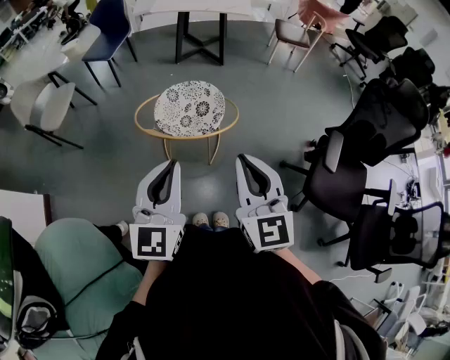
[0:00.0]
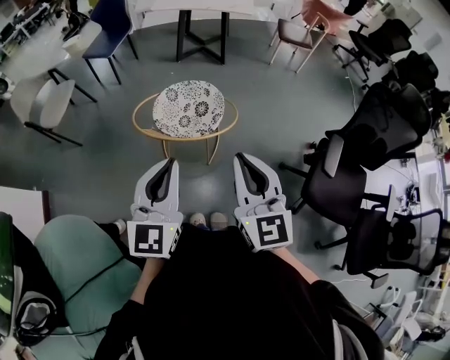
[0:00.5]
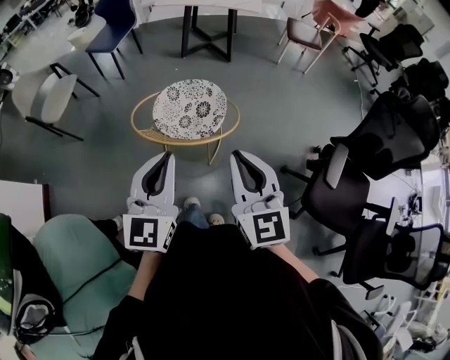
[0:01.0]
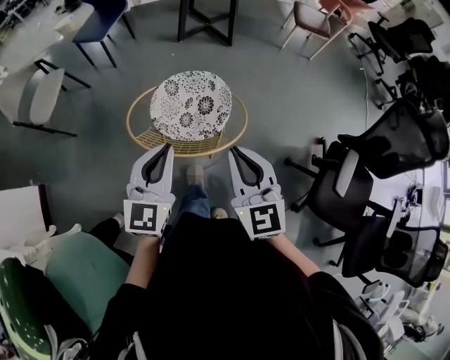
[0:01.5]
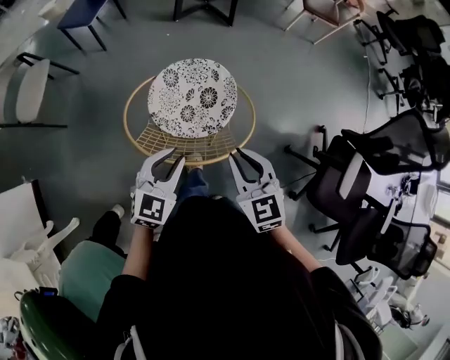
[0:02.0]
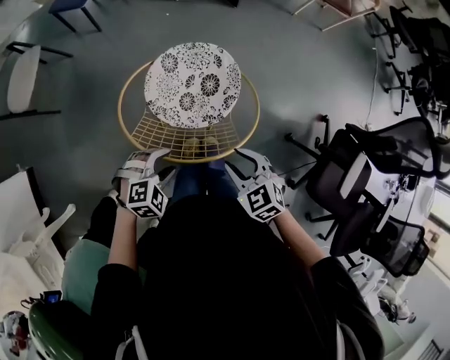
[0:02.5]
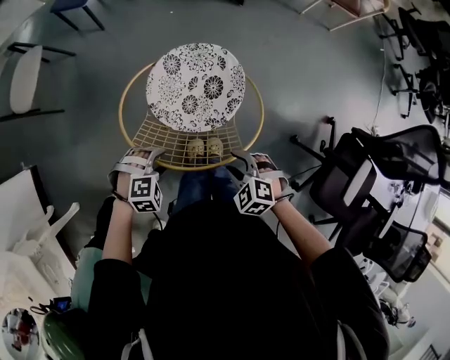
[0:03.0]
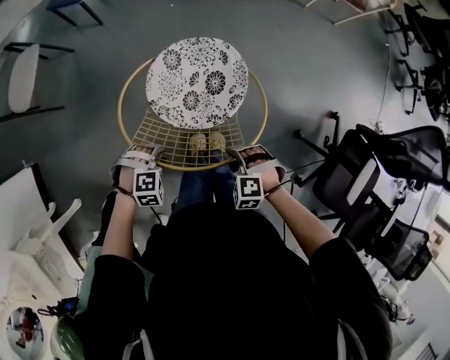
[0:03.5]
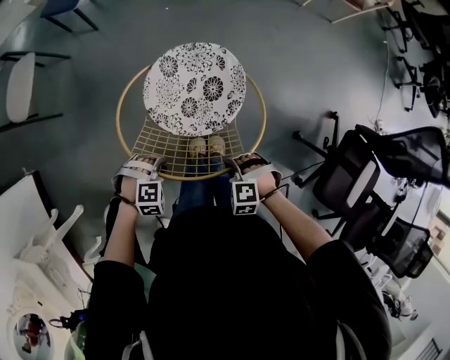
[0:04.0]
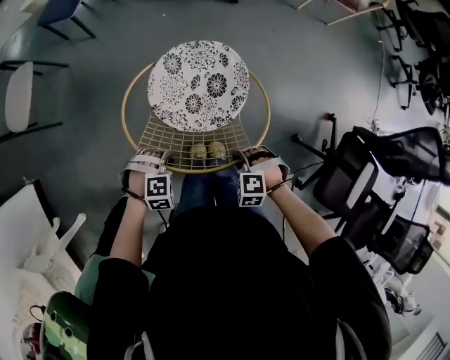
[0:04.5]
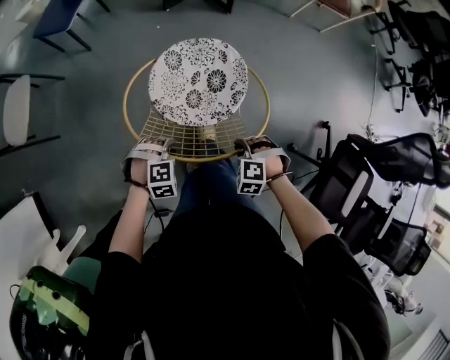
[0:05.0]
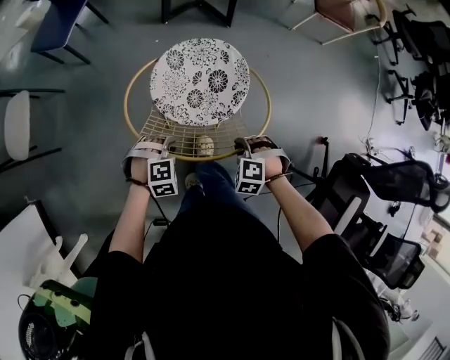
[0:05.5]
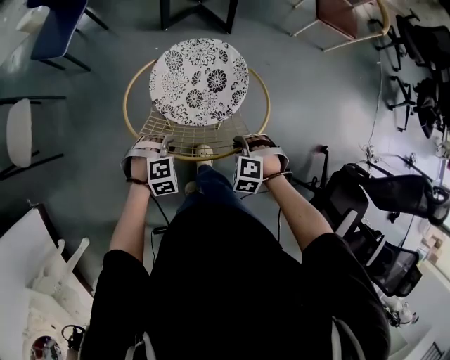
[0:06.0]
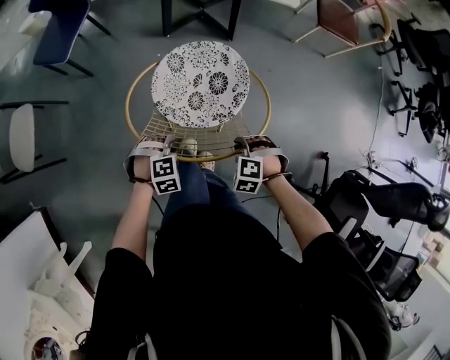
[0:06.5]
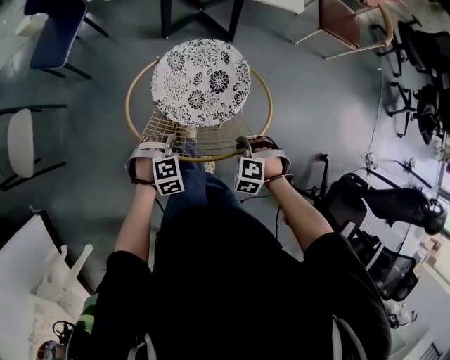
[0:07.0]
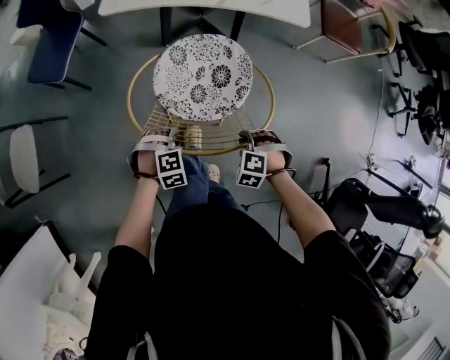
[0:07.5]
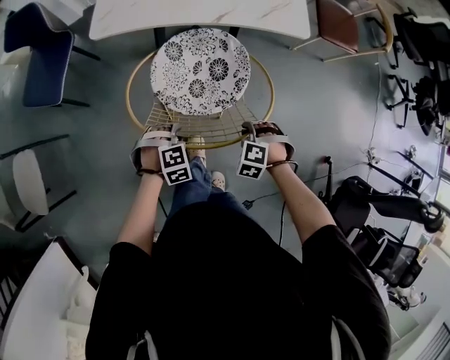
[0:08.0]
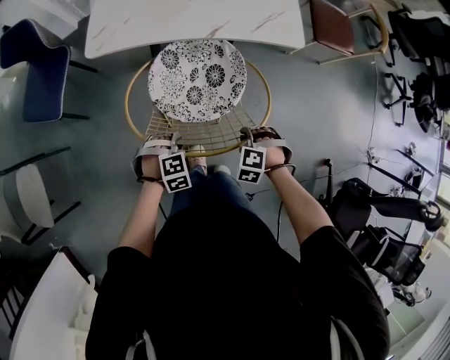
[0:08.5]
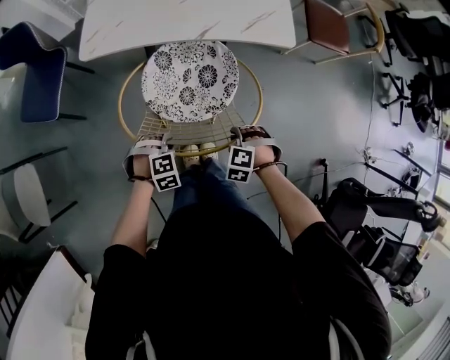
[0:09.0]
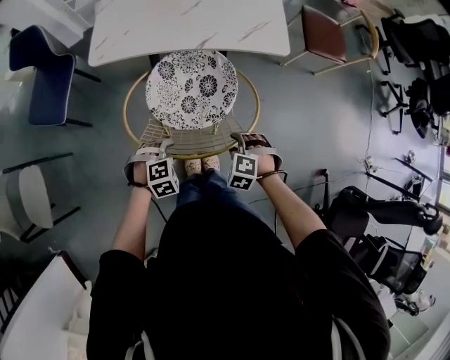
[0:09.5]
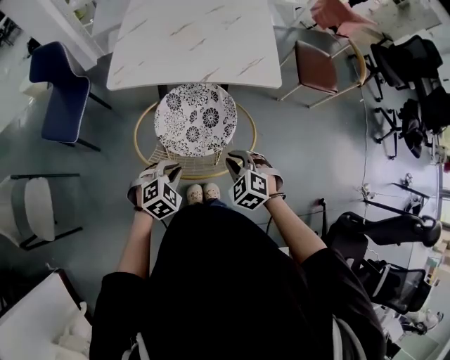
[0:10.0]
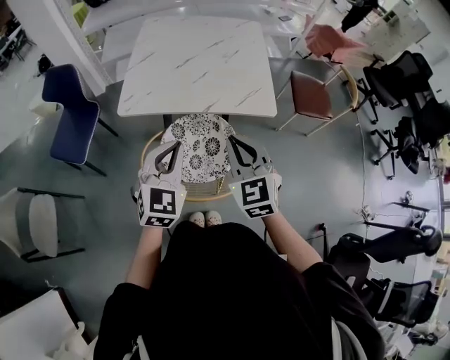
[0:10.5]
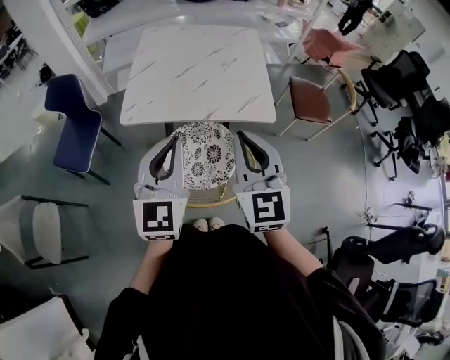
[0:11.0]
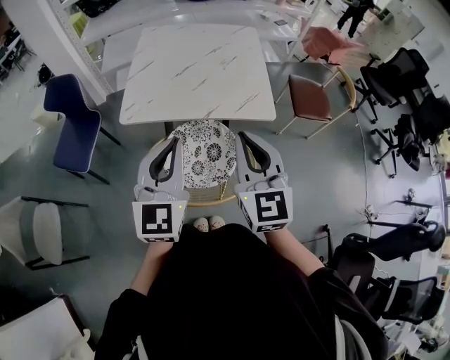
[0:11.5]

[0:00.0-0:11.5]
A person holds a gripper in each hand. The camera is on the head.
0:00.0 to 0:02.0: The grippers both shift forward and downward by about 30 cm. The right gripper rotates approximately 30 degrees; the left gripper turns by about 30 degrees.
0:02.0 to 0:04.0: The two grippers go some 20 cm downward. The right gripper angles its fingers downward, by approximately 50 degrees, and opens and closes again. The left gripper tips its fingers downward by about 50 degrees, and opens and closes again.
0:04.0 to 0:06.0: The left gripper changes place by roughly 35 cm, while the right gripper shifts by approximately 35 cm.
0:06.0 to 0:07.5: The right gripper ends up roughly 15 cm from where it was; the left gripper shifts by approximately 15 cm.
0:07.5 to 0:09.5: The right gripper moves about 10 cm, and opens, while the left gripper changes place by roughly 10 cm.
0:09.5 to 0:11.5: The grippers both shift upward by some 40 cm. The right gripper angles its fingers upward, by some 70 degrees, and closes up; the left gripper tilts its fingers approximately 70 degrees upward, and closes.

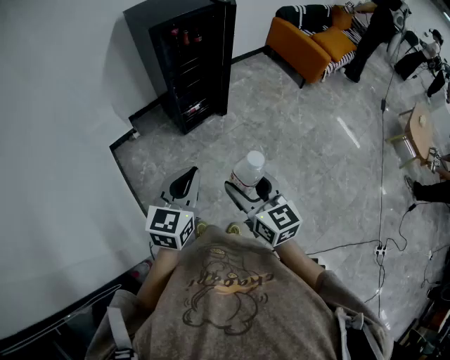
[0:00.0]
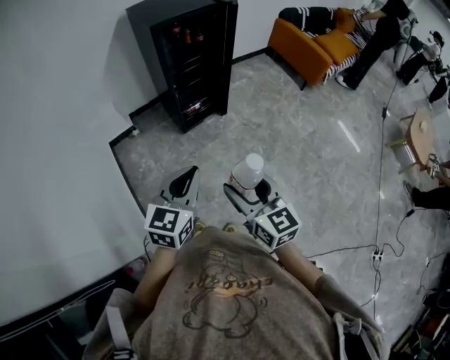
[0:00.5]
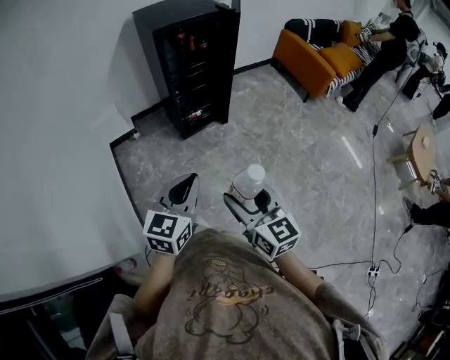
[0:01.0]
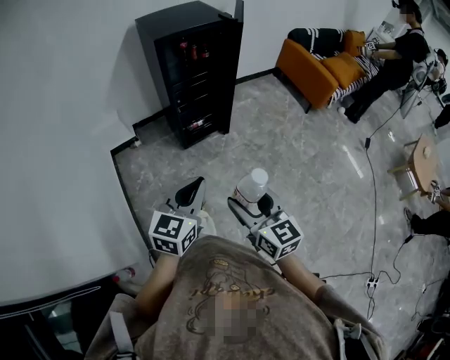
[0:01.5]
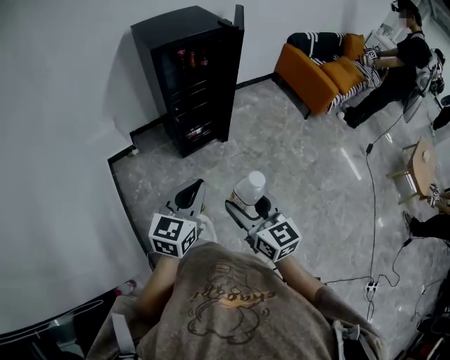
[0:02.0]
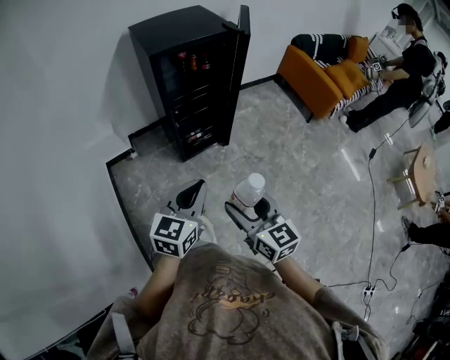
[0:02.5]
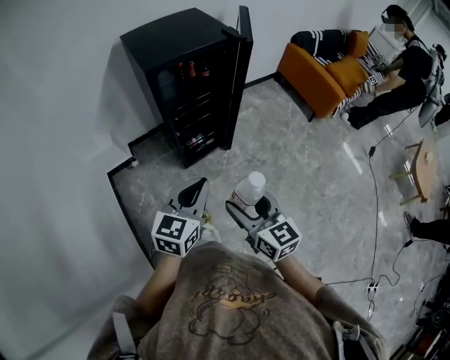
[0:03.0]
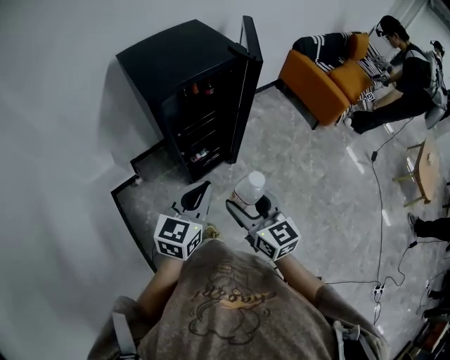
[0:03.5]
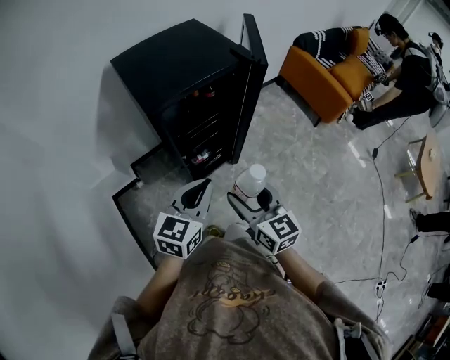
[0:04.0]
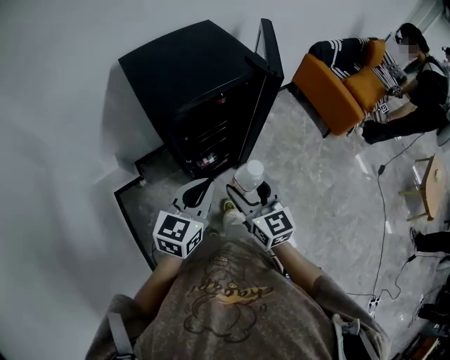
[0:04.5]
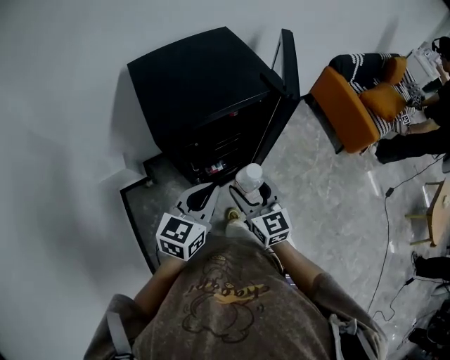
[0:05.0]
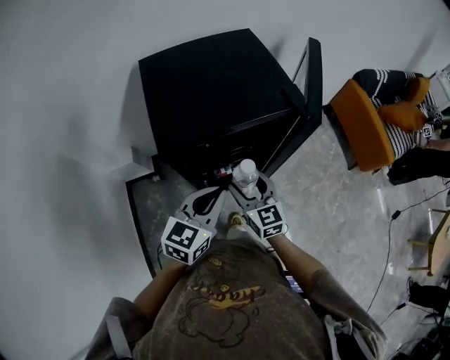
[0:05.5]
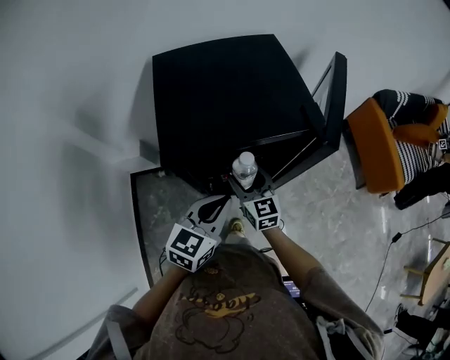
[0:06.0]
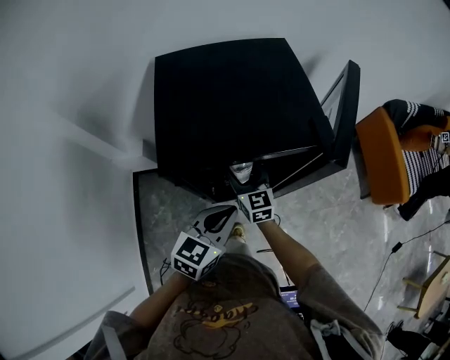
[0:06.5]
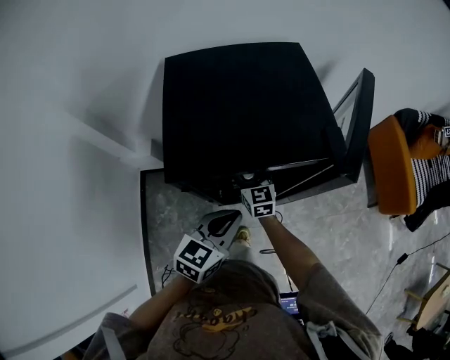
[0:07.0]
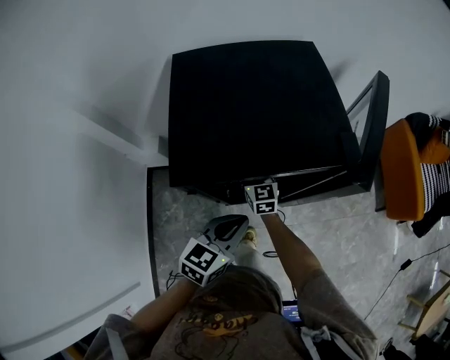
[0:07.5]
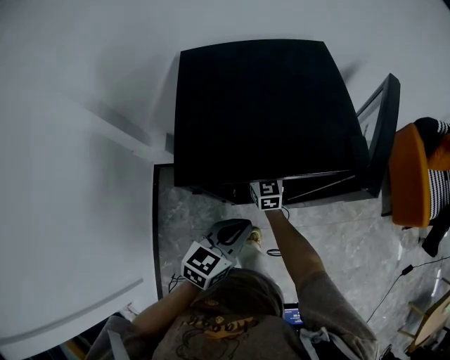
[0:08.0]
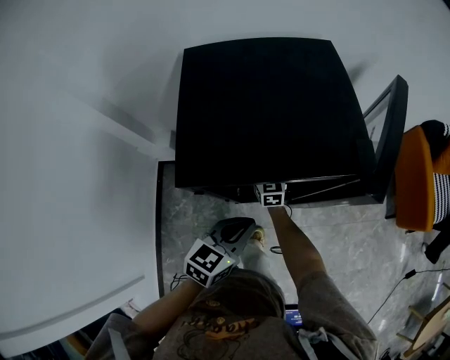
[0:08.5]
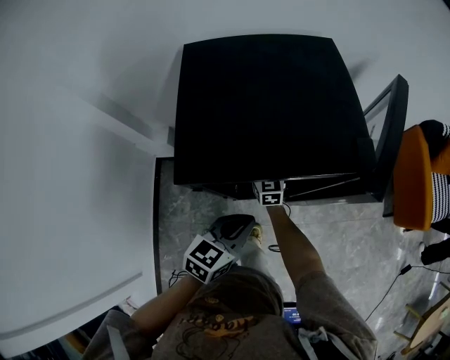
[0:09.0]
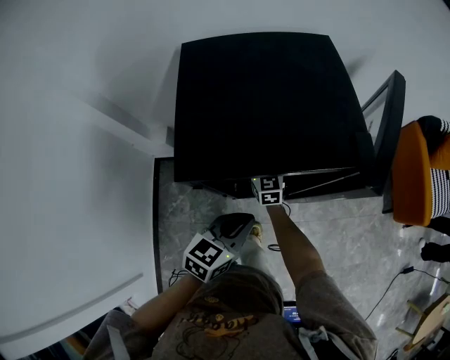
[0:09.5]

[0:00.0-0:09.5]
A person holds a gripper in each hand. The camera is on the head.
0:00.0 to 0:02.0: The right gripper goes some 5 cm forward. Meanwhile the left gripper heads forward and to the right, covering approximately 10 cm.
0:02.0 to 0:04.0: Both grippers move forward, some 30 cm.
0:04.0 to 0:05.5: The left gripper moves forward, approximately 15 cm. Meanwhile the right gripper goes roughly 25 cm forward and downward.
0:05.5 to 0:07.5: The right gripper travels forward, downward and to the left by roughly 20 cm, while the left gripper travels downward by some 5 cm.
0:07.5 to 0:09.5: The grippers make only small movements.

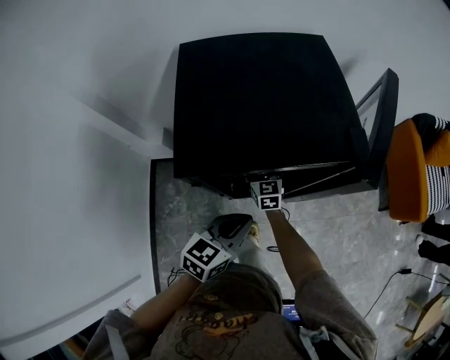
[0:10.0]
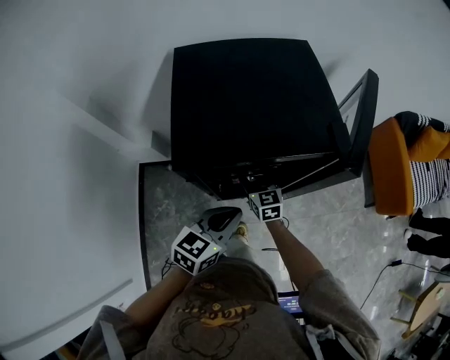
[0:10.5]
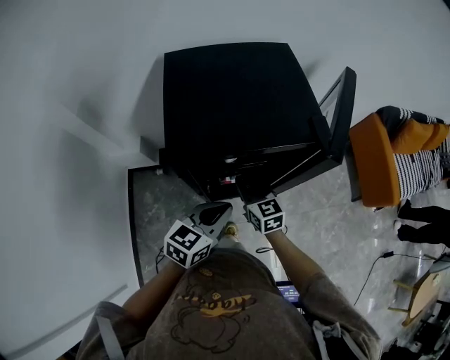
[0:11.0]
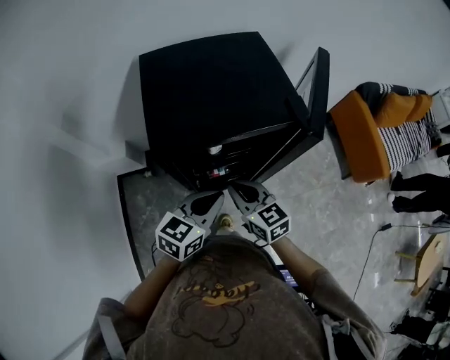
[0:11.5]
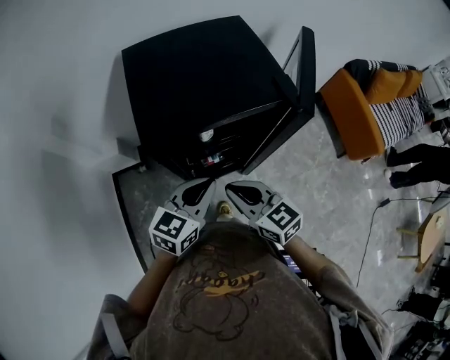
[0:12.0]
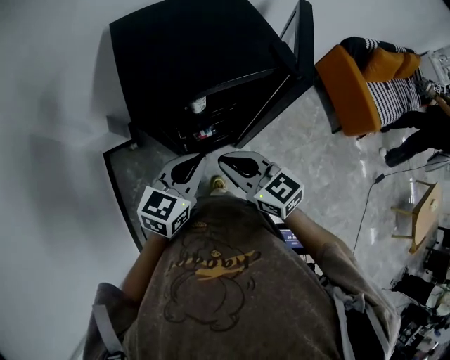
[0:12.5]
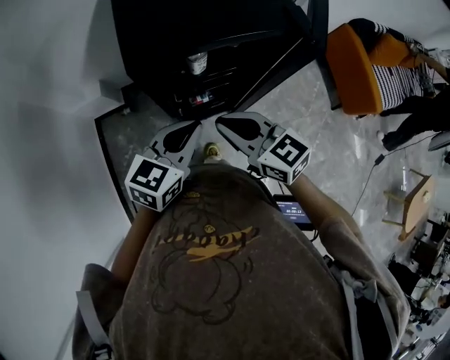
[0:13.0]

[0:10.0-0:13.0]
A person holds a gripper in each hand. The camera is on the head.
0:10.0 to 0:11.5: The right gripper shifts approximately 25 cm upward and backward, and closes; the left gripper is displaced upward by approximately 5 cm.
0:11.5 to 0:13.0: The right gripper is displaced backward by some 5 cm.

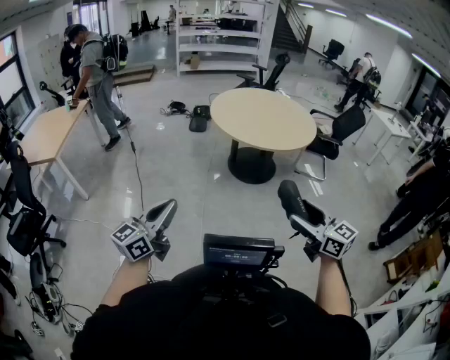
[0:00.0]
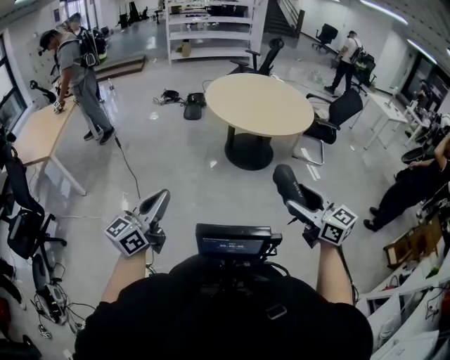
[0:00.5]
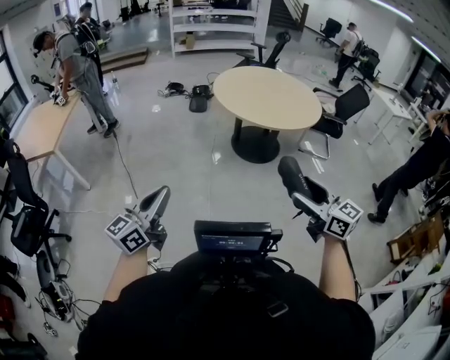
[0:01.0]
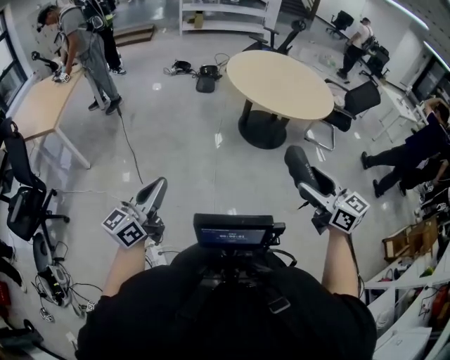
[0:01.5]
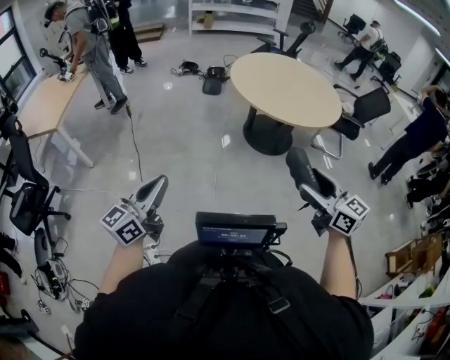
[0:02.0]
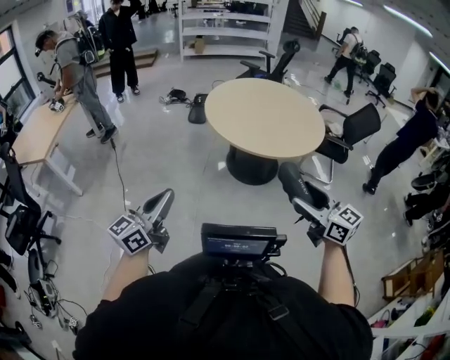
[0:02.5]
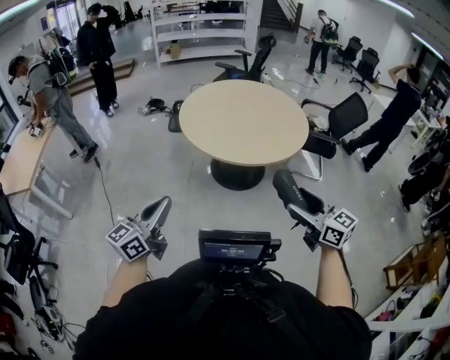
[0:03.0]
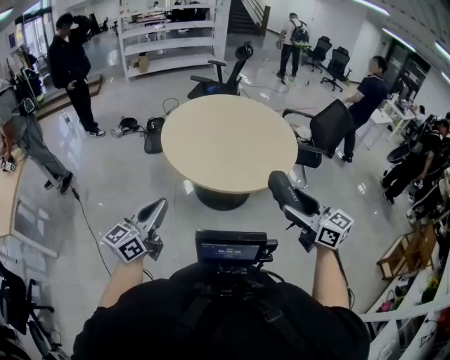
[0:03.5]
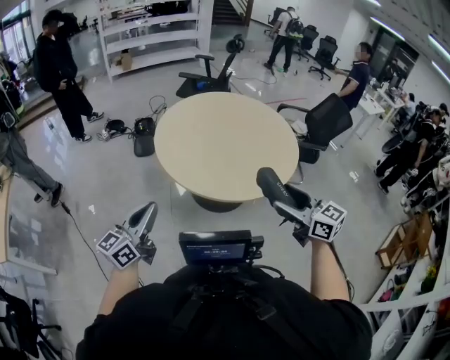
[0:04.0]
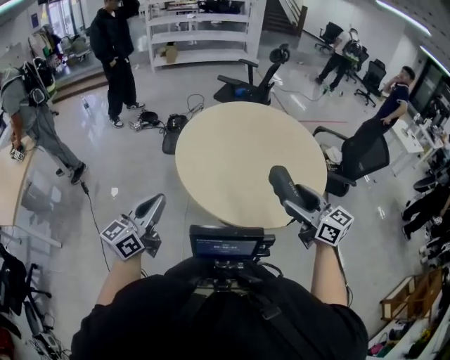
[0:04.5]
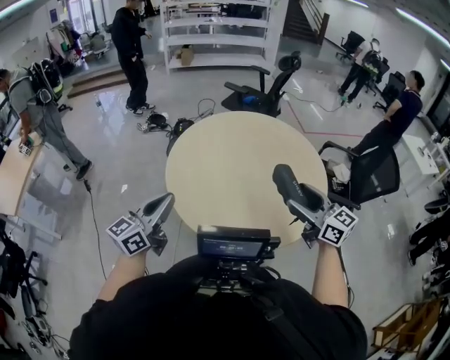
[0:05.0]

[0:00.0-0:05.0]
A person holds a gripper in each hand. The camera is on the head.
0:00.0 to 0:02.5: The two grippers go some 25 cm forward and to the right.
0:02.5 to 0:05.0: The pair of grippers is taken forward, roughly 60 cm.
